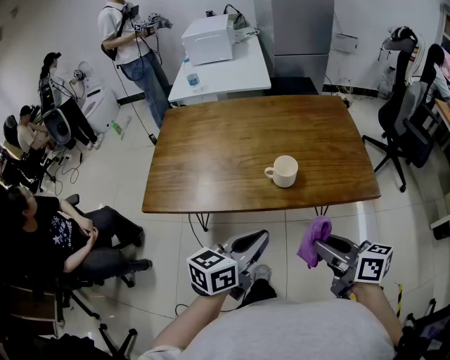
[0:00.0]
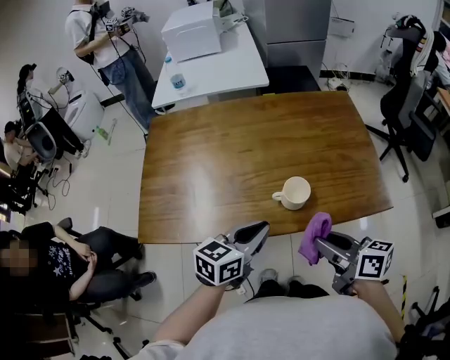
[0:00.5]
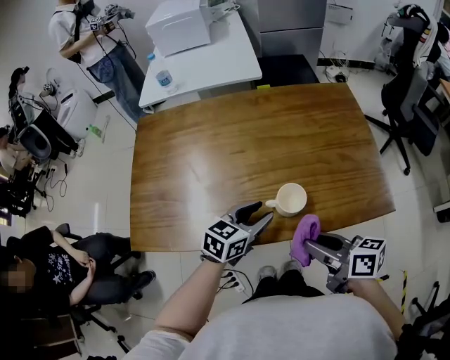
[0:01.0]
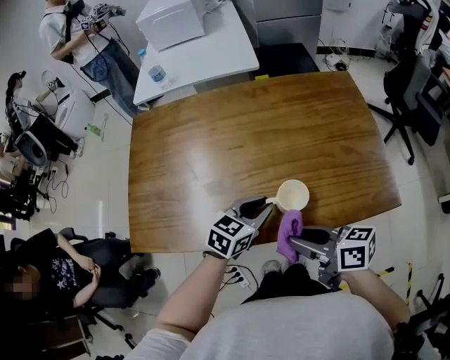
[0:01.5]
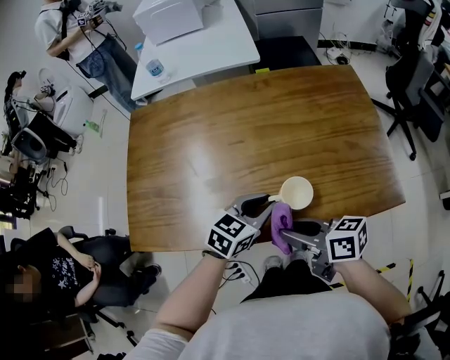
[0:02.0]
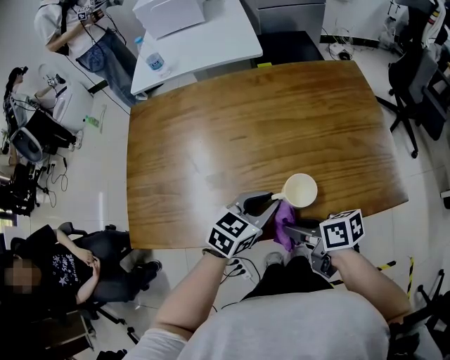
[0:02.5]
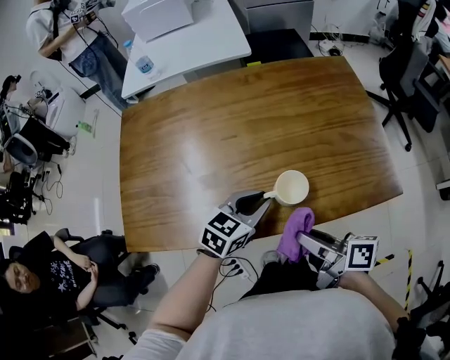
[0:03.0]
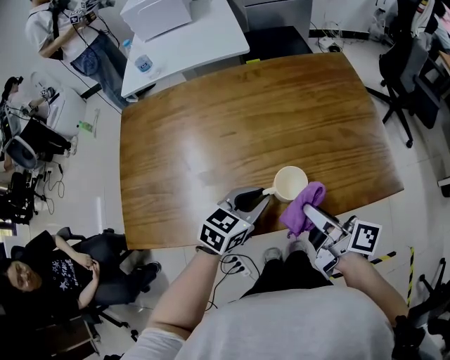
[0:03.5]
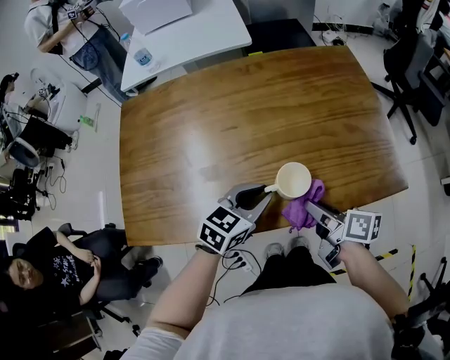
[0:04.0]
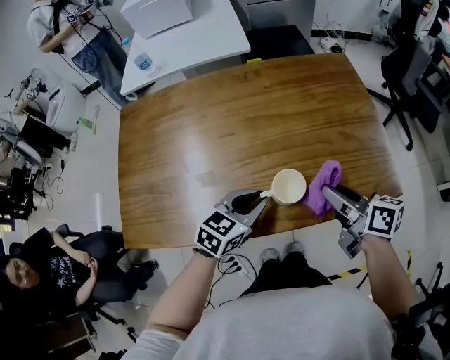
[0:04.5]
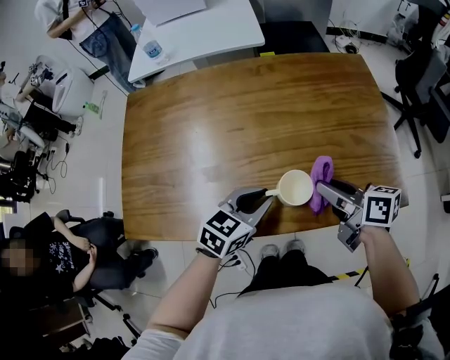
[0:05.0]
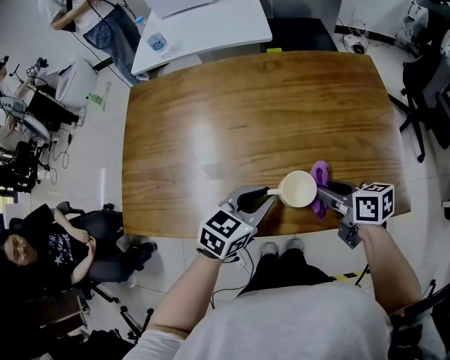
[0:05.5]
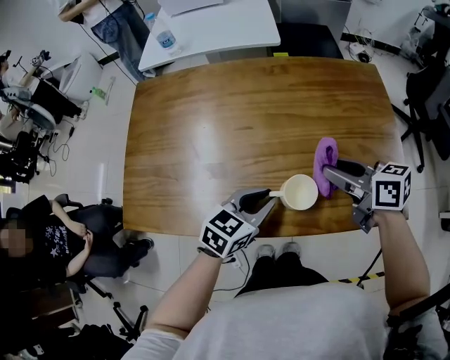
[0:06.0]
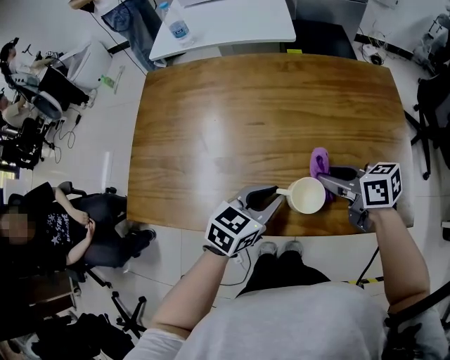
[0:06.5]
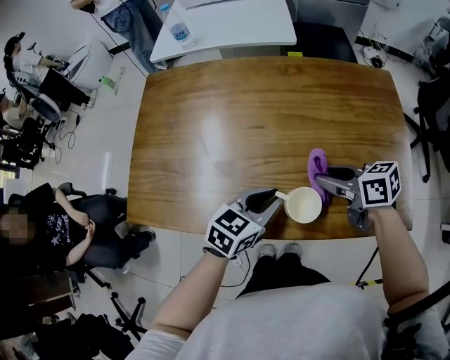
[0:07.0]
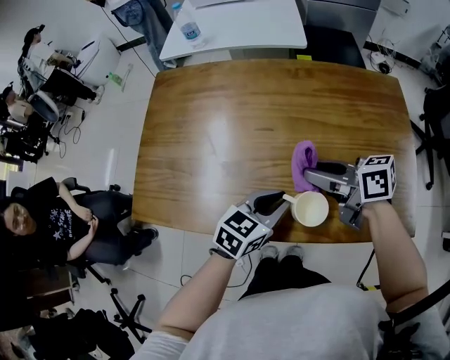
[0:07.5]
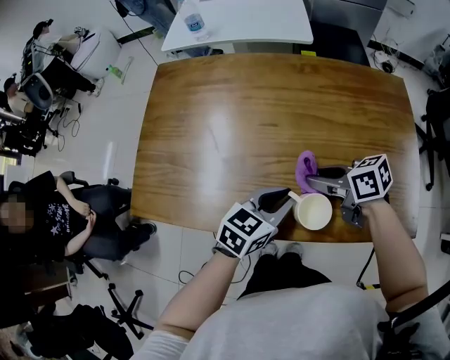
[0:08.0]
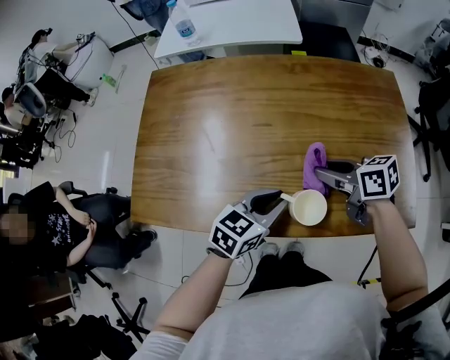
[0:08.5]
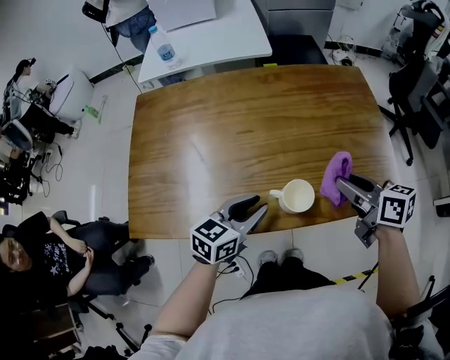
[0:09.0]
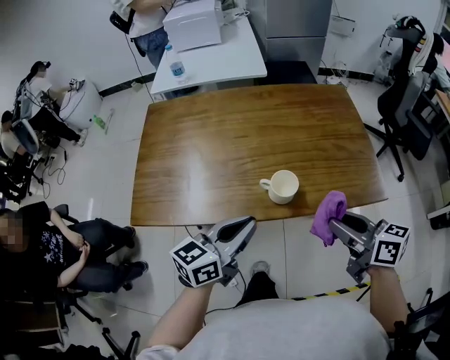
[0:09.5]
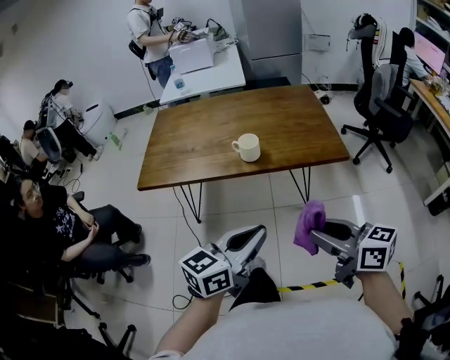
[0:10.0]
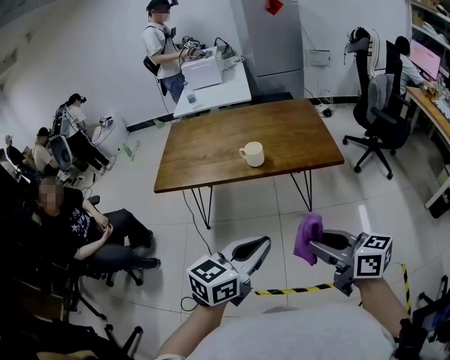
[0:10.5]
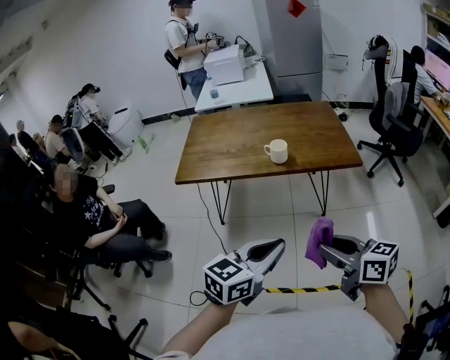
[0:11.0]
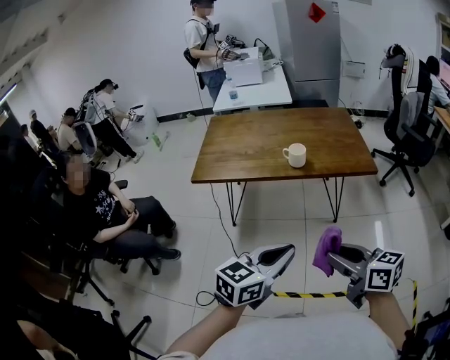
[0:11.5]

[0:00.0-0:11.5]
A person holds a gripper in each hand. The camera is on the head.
0:00.0 to 0:02.0: The right gripper travels forward, downward and to the left by about 25 cm; the left gripper shifts some 30 cm forward and downward, rotates some 30 degrees, and opens, then closes once more.
0:02.0 to 0:04.0: The right gripper goes about 10 cm to the right, and rotates roughly 30 degrees.
0:04.0 to 0:06.0: The right gripper heads forward and upward, covering about 15 cm, and swivels roughly 30 degrees.
0:06.0 to 0:07.5: The right gripper shifts some 10 cm to the left.
0:07.5 to 0:09.5: The right gripper shifts by roughly 25 cm, and swivels approximately 30 degrees. Meanwhile the left gripper changes place by about 20 cm, and turns by approximately 30 degrees.
0:09.5 to 0:11.5: The two grippers travel together, backward, approximately 40 cm.

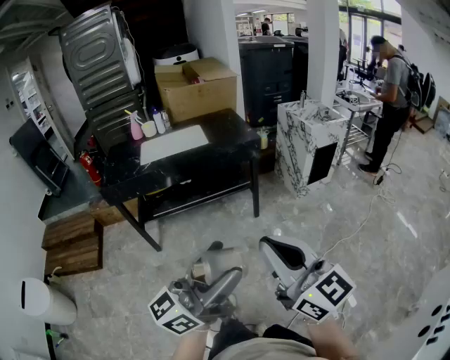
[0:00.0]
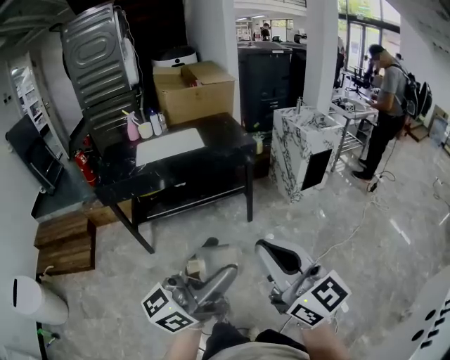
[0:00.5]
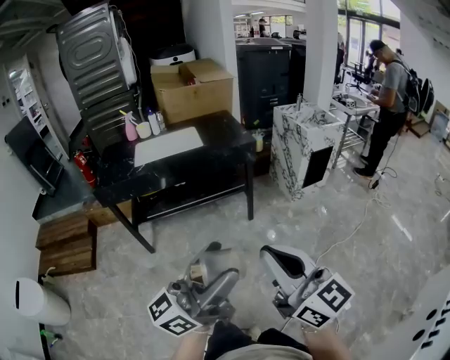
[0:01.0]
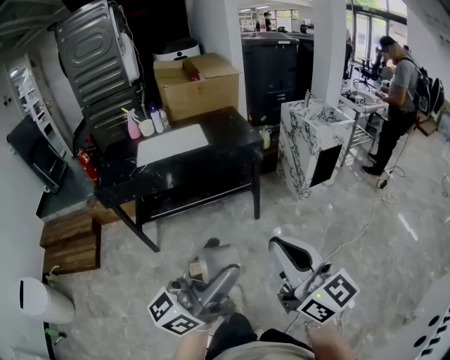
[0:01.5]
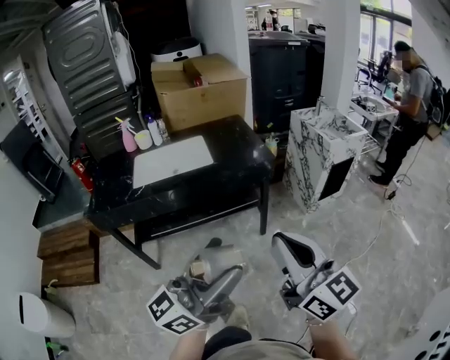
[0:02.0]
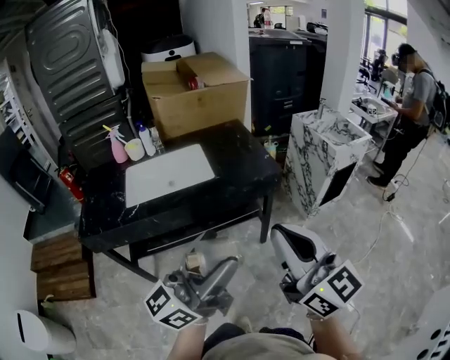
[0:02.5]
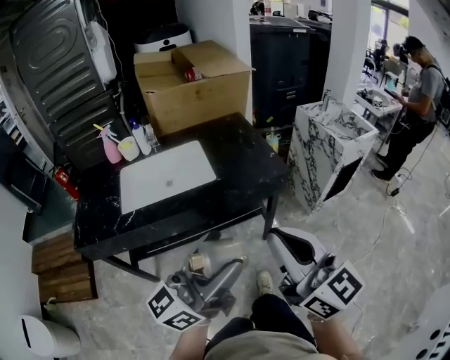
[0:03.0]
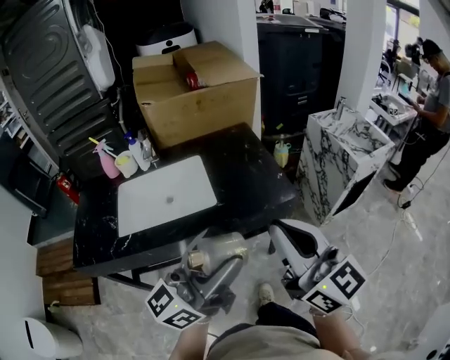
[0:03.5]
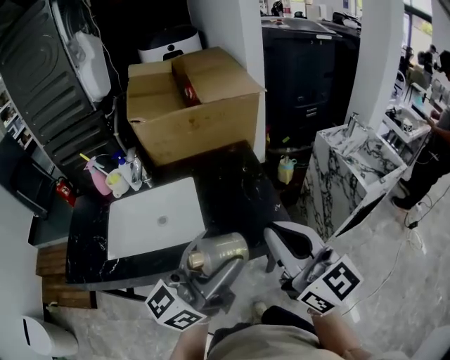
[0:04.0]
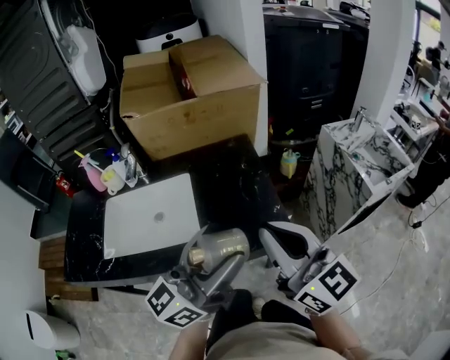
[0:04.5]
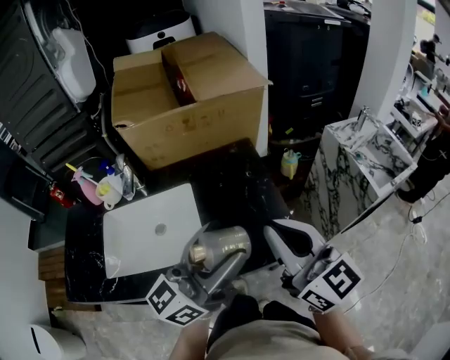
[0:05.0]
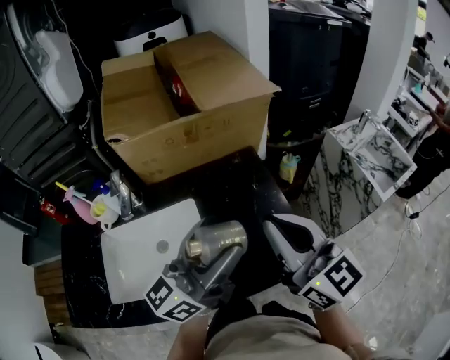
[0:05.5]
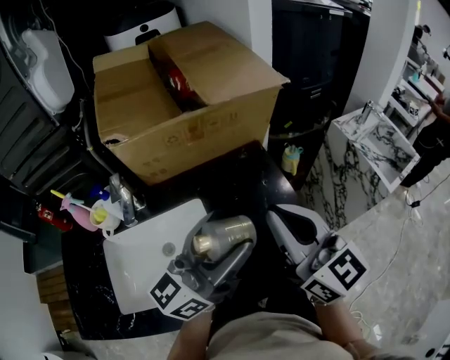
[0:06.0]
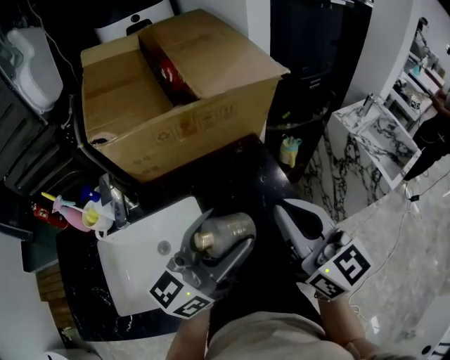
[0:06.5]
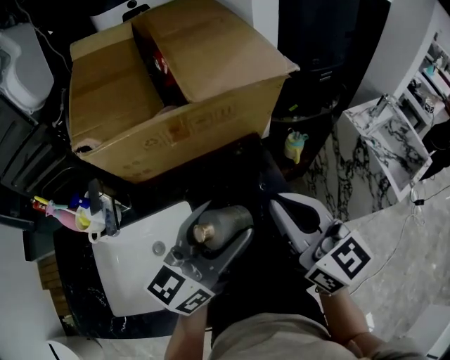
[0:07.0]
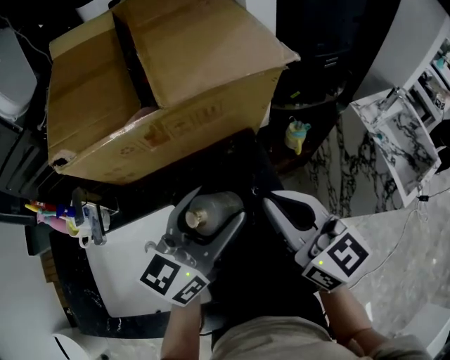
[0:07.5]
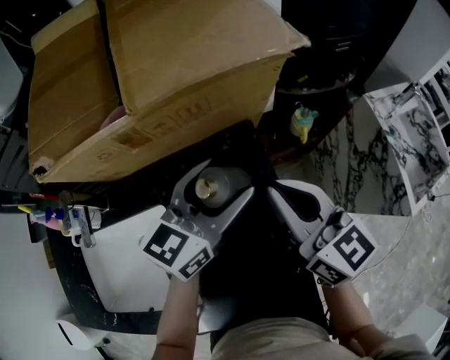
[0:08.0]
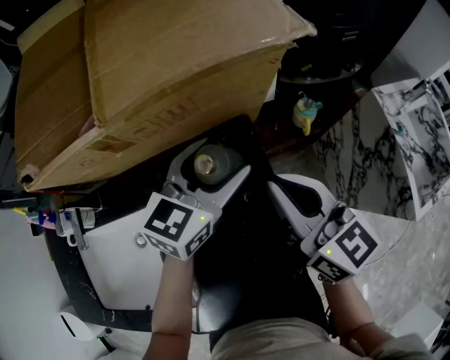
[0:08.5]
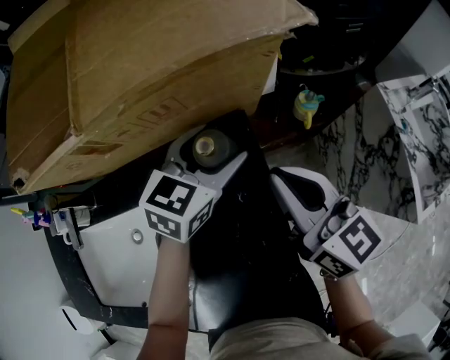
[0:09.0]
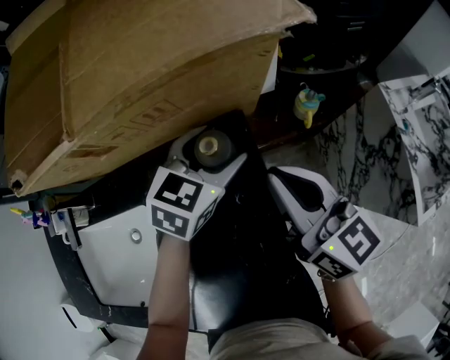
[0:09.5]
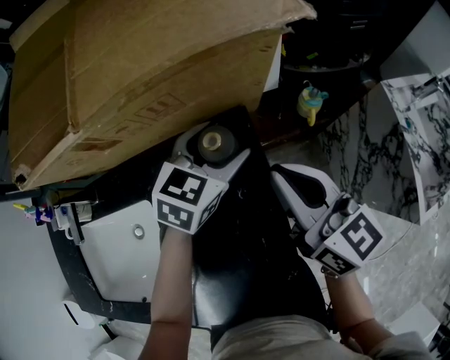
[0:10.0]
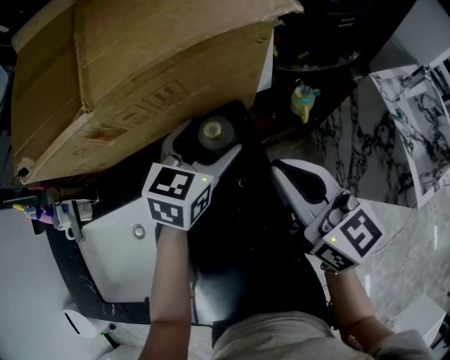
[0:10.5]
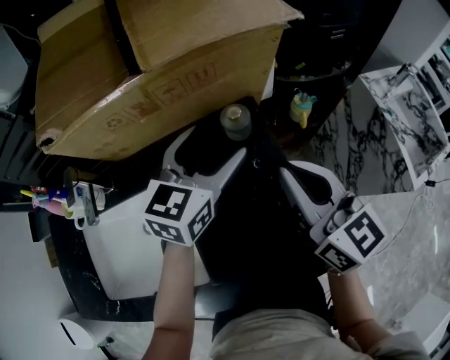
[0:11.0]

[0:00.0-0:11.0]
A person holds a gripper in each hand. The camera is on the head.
0:00.0 to 0:02.0: The two grippers go about 25 cm forward.
0:02.0 to 0:03.5: Both grippers move forward, roughly 35 cm.
0:03.5 to 0:05.5: Both grippers travel together forward, roughly 35 cm.
0:05.5 to 0:07.5: Both grippers move forward and downward, about 25 cm. The left gripper rotates approximately 30 degrees.
0:07.5 to 0:09.0: The right gripper goes approximately 15 cm downward, forward and to the right, while the left gripper travels forward and downward by some 20 cm, and turns by about 30 degrees.
0:09.0 to 0:11.0: The left gripper goes roughly 15 cm backward, upward and to the left, while the right gripper is displaced backward and upward by approximately 10 cm.

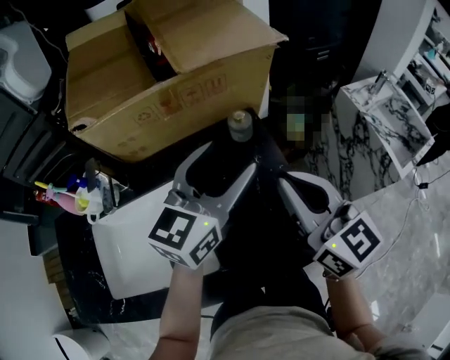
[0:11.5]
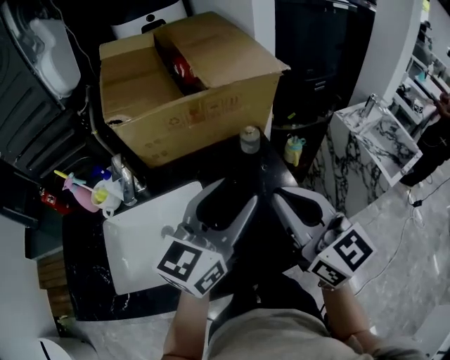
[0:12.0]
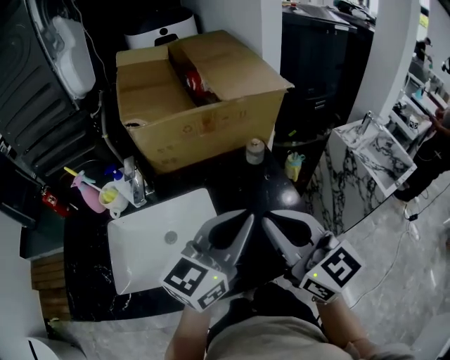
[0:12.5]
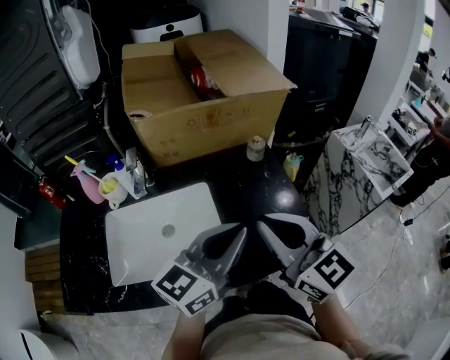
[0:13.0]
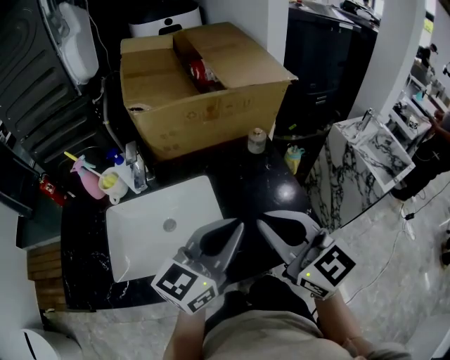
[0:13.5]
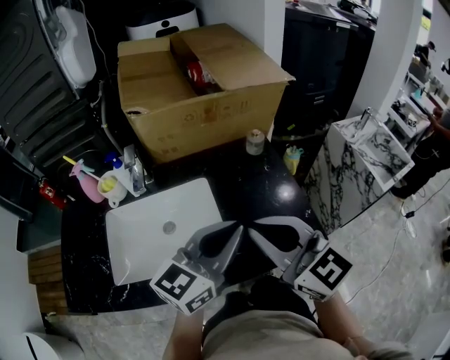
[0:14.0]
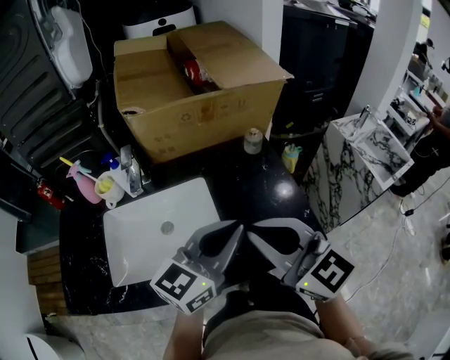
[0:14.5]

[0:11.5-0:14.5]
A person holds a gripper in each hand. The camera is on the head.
0:11.5 to 0:13.0: The left gripper goes roughly 20 cm backward, and closes up; the right gripper heads backward and to the left, covering roughly 20 cm.
0:13.0 to 0:14.5: There are only small adjustments of the grippers.

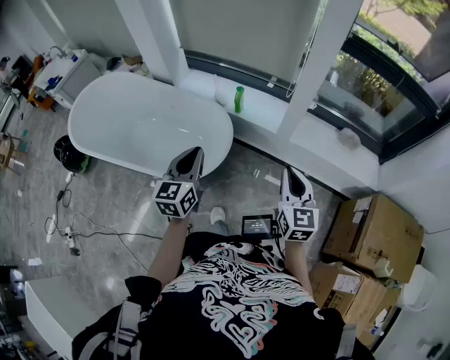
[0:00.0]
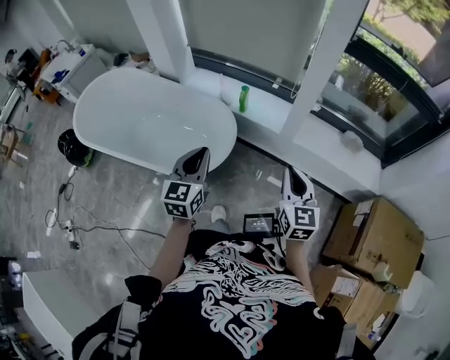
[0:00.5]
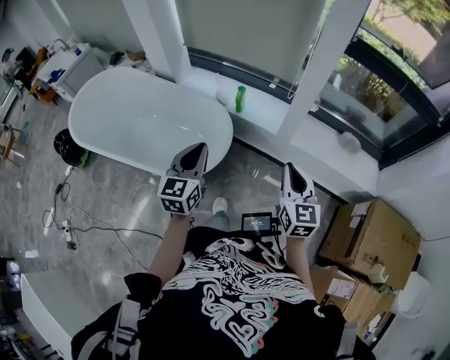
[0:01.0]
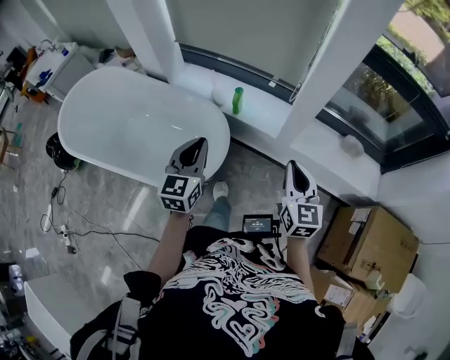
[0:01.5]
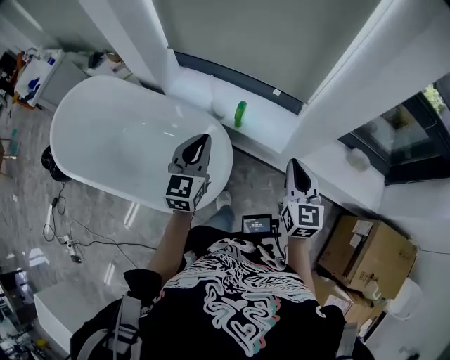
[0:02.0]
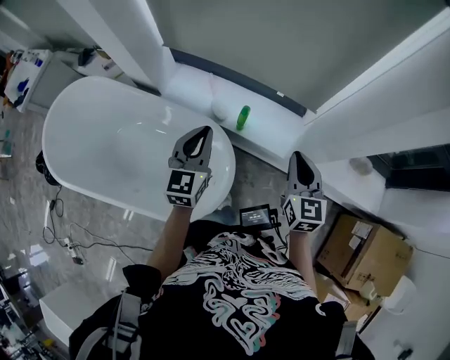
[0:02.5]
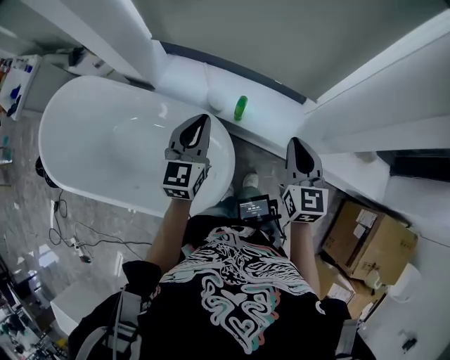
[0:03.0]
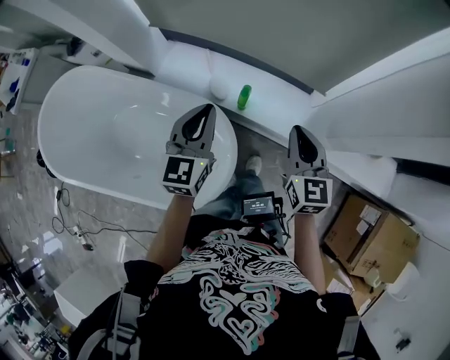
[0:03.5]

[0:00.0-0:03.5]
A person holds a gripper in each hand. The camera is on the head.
0:00.0 to 0:02.0: The two grippers go about 30 cm forward.
0:02.0 to 0:03.5: The two grippers go some 15 cm forward.
